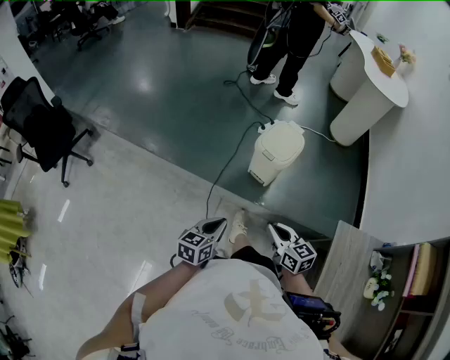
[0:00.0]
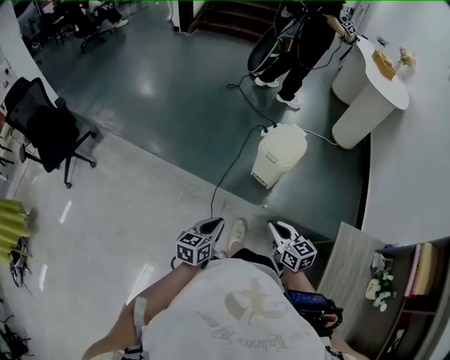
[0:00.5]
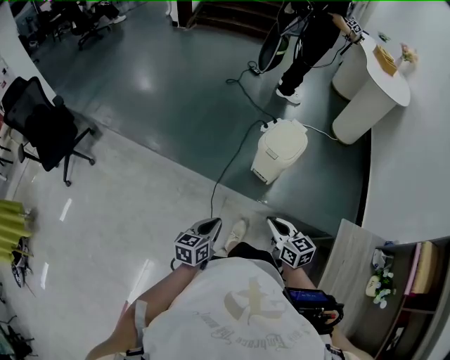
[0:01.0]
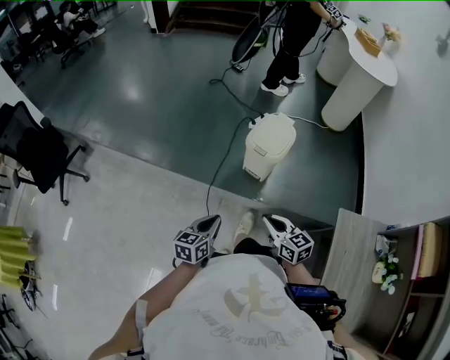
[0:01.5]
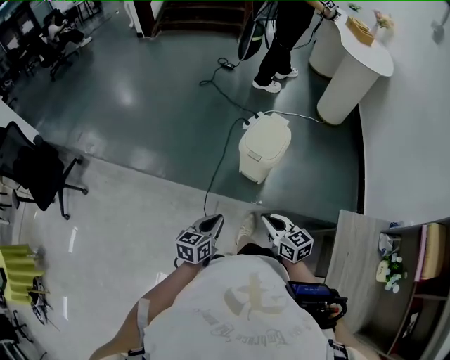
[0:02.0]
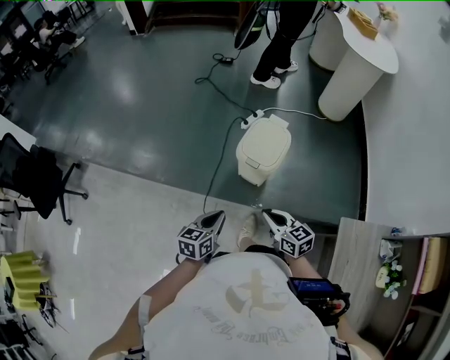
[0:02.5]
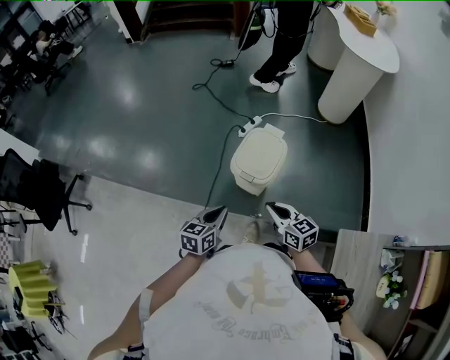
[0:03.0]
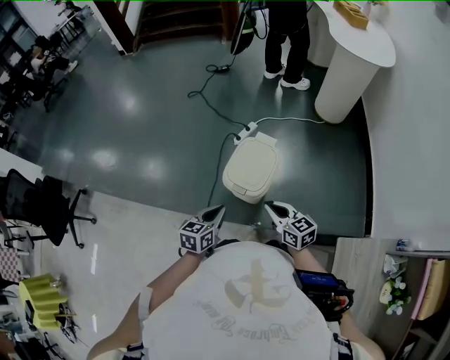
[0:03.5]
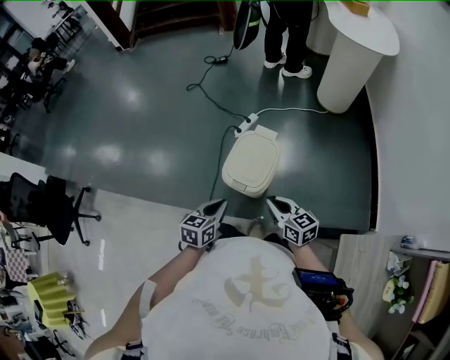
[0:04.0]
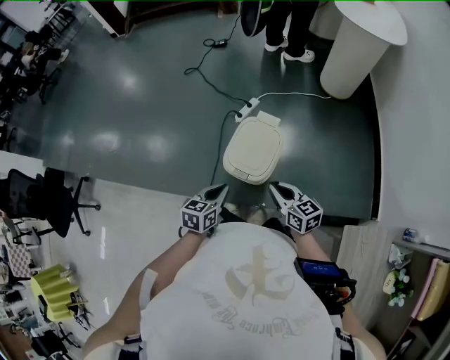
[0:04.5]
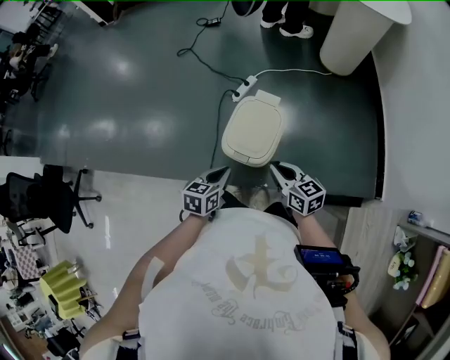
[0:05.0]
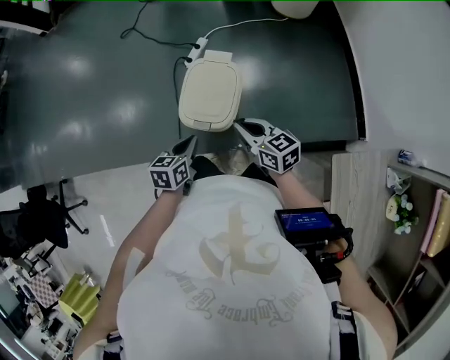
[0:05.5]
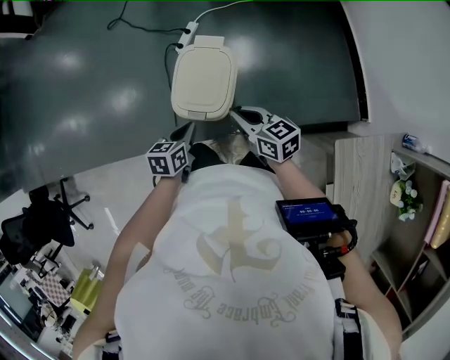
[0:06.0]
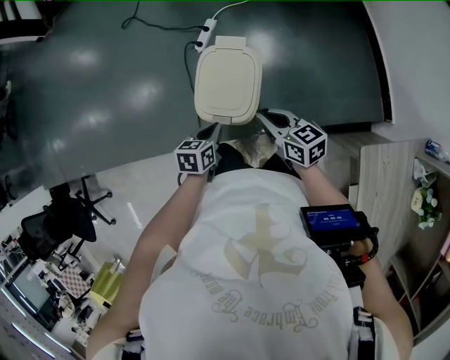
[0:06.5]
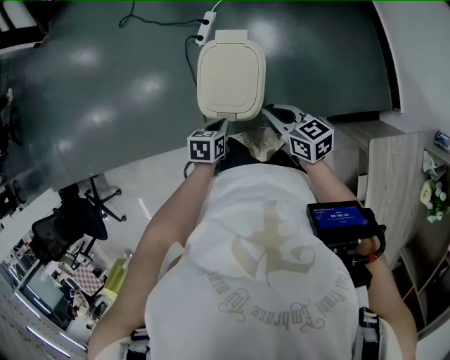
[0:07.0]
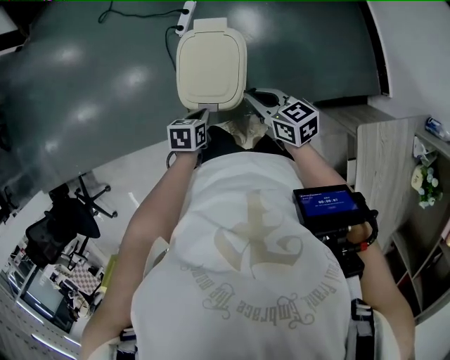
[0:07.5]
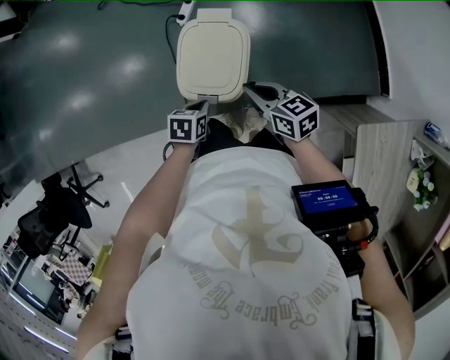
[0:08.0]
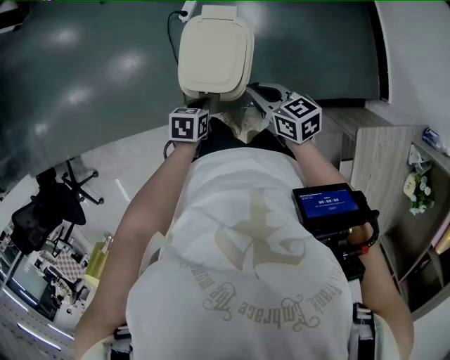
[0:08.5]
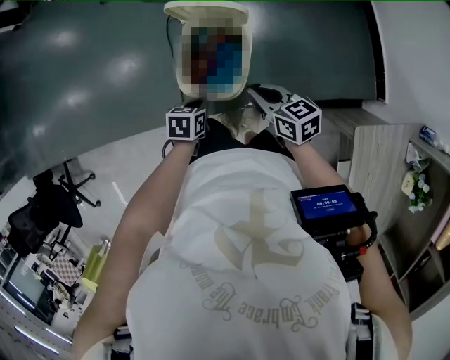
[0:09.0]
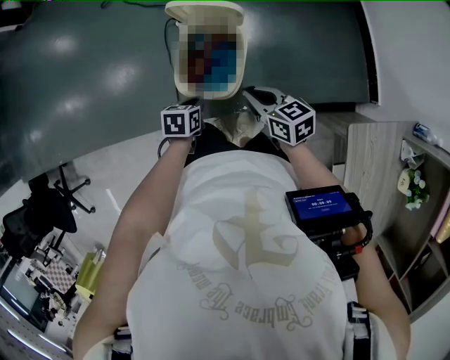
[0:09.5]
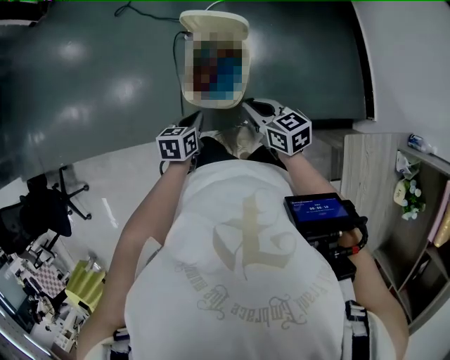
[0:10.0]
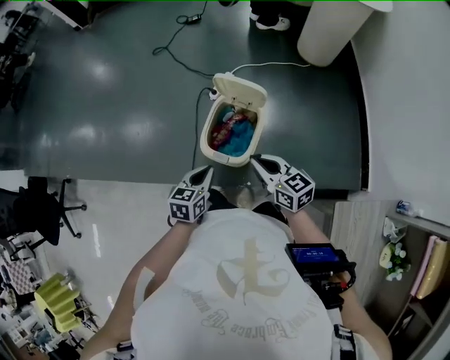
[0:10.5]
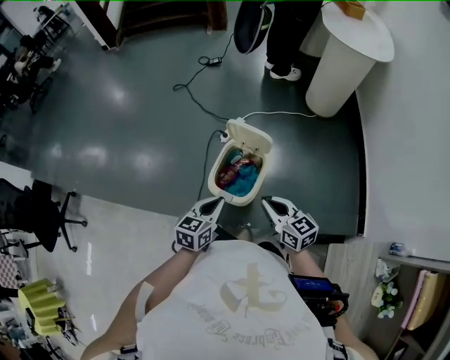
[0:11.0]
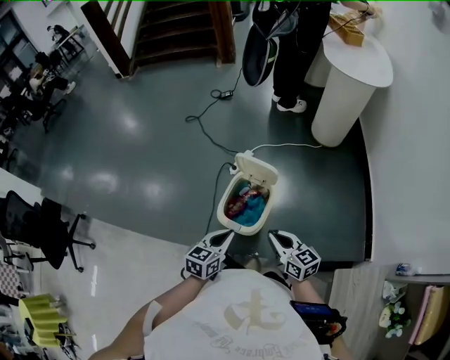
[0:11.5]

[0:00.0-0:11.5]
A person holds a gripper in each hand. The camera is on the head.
0:00.0 to 0:02.0: Both grippers move forward, roughly 5 cm.
0:02.0 to 0:04.0: Both grippers move forward and to the right, some 25 cm.
0:04.0 to 0:06.0: The right gripper is displaced forward by roughly 5 cm, while the left gripper moves downward and forward, approximately 10 cm.
0:06.0 to 0:07.5: The left gripper goes roughly 10 cm downward, and turns by roughly 20 degrees. The right gripper changes place by roughly 5 cm.
0:07.5 to 0:09.5: There are only small adjustments of the grippers.
0:09.5 to 0:11.5: The left gripper goes approximately 20 cm upward, and tilts its fingers approximately 30 degrees upward, while the right gripper heads upward, covering some 10 cm.

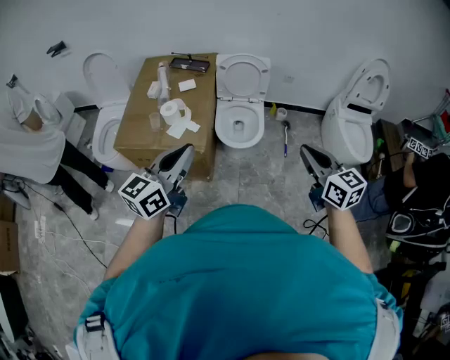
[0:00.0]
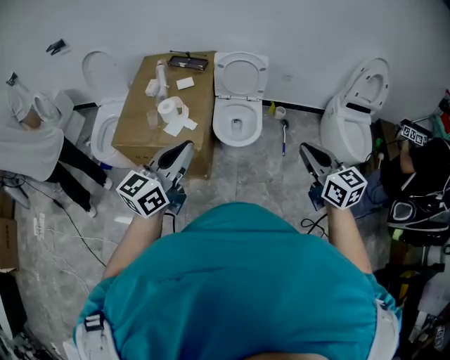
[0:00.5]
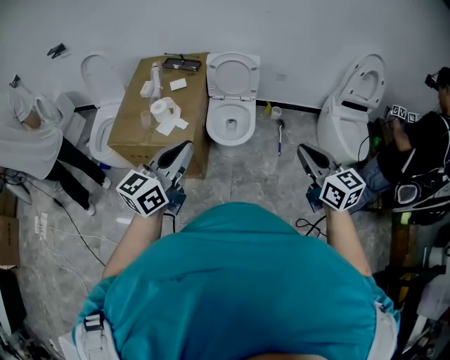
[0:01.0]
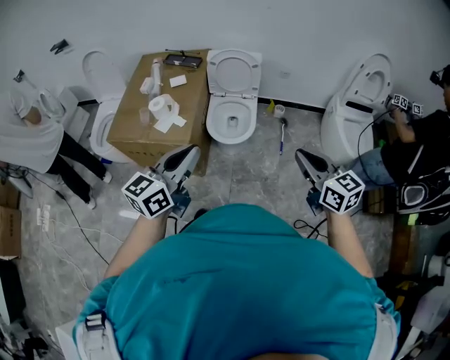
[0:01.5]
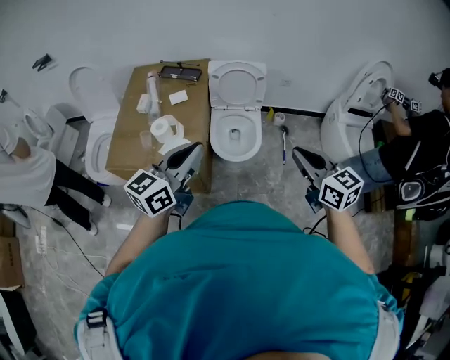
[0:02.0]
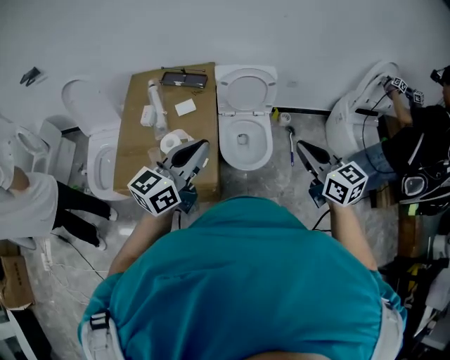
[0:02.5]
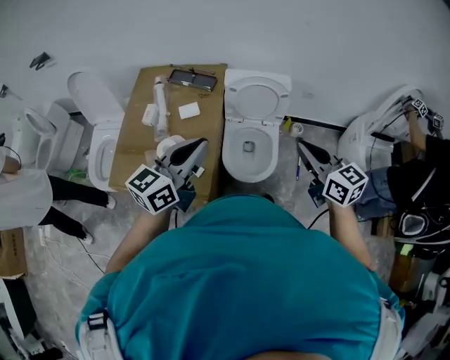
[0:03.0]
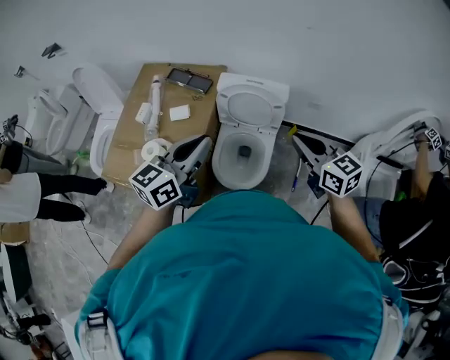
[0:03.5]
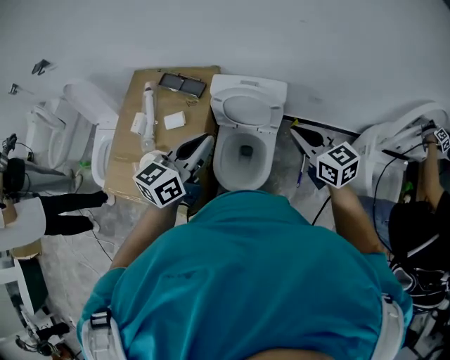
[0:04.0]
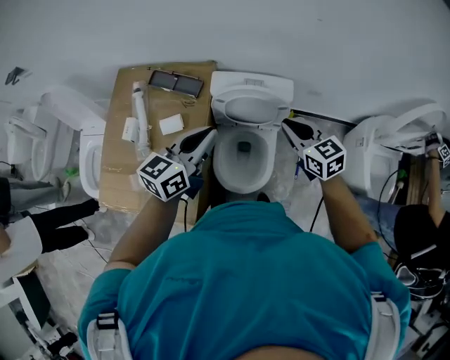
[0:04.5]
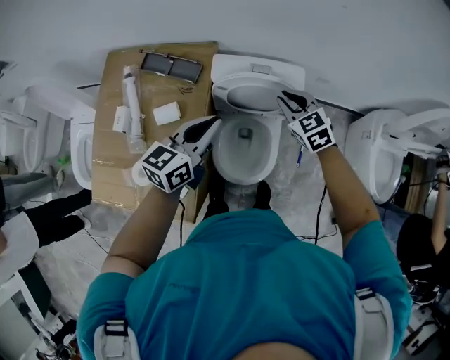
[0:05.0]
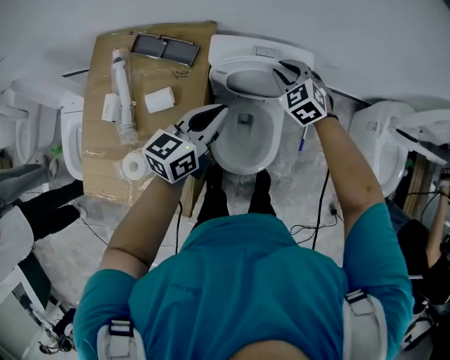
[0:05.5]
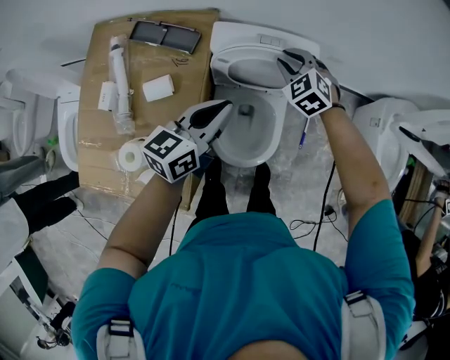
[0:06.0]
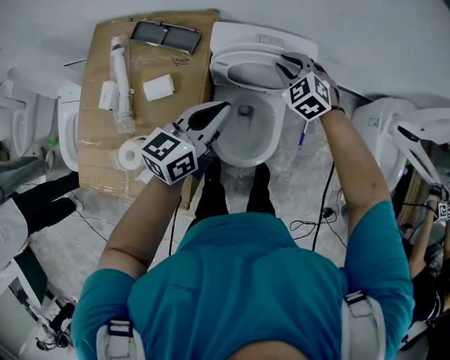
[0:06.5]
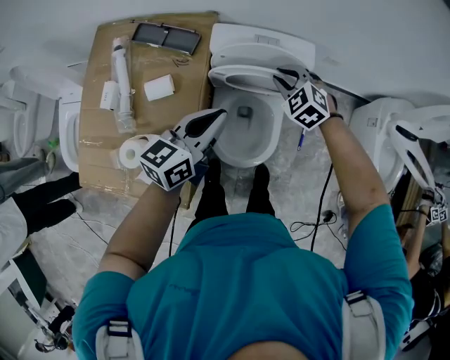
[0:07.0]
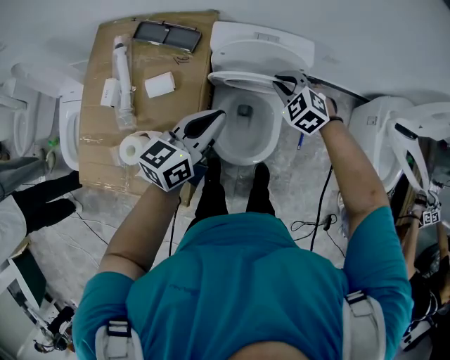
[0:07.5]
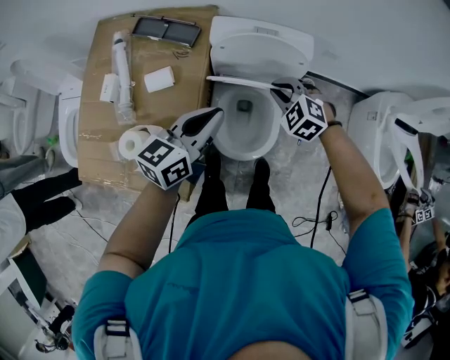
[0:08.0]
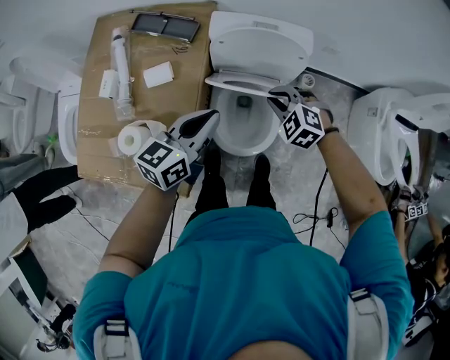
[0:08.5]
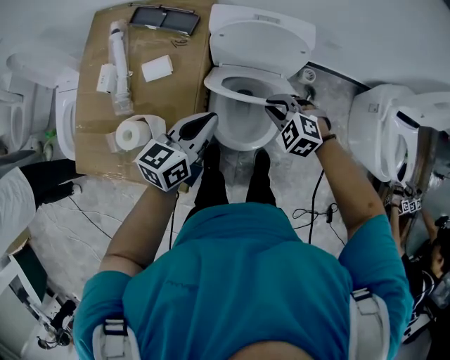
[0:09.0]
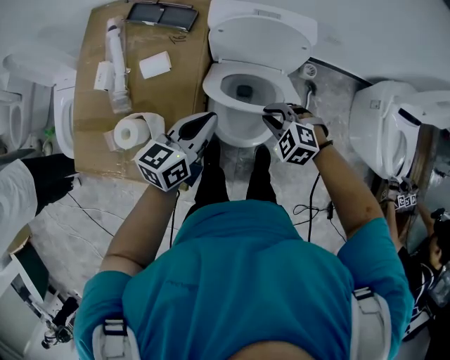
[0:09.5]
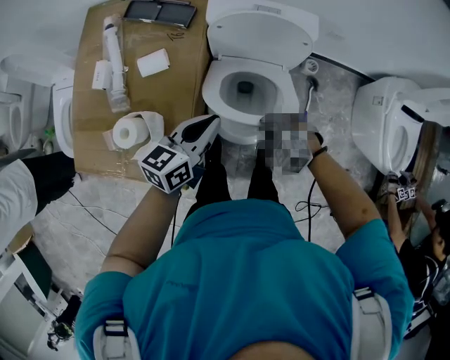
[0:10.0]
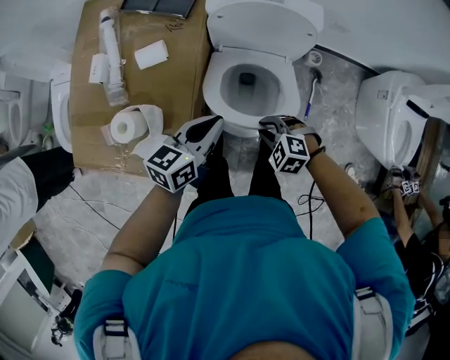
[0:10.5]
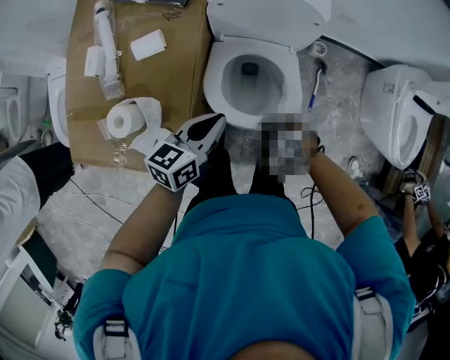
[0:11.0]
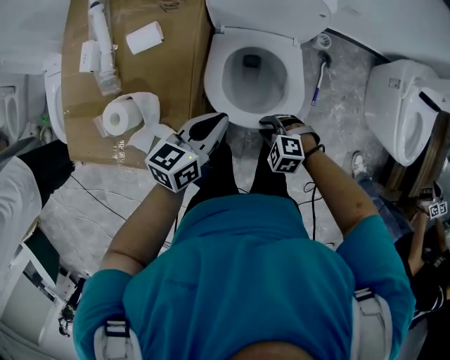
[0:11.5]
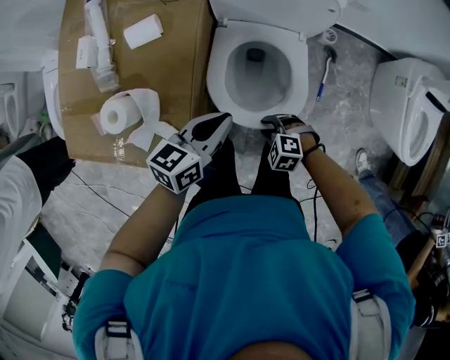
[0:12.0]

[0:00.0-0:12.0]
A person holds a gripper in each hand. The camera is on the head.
0:00.0 to 0:02.0: The two grippers go approximately 10 cm forward.
0:02.0 to 0:04.0: The two grippers travel together, forward, approximately 40 cm.
0:04.0 to 0:06.0: The right gripper heads downward, forward and to the left, covering some 35 cm, and turns by roughly 50 degrees; the left gripper goes some 25 cm downward and forward.
0:06.0 to 0:08.0: The right gripper travels backward by some 15 cm, while the left gripper goes some 5 cm backward.
0:08.0 to 0:10.0: The right gripper moves backward and downward, about 20 cm; the left gripper is displaced downward by approximately 5 cm.
0:10.0 to 0:12.0: The right gripper shifts roughly 15 cm downward, while the left gripper heads downward, covering roughly 10 cm.

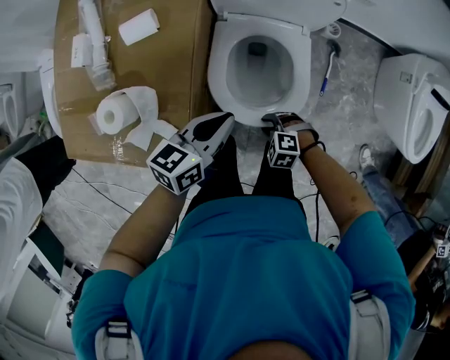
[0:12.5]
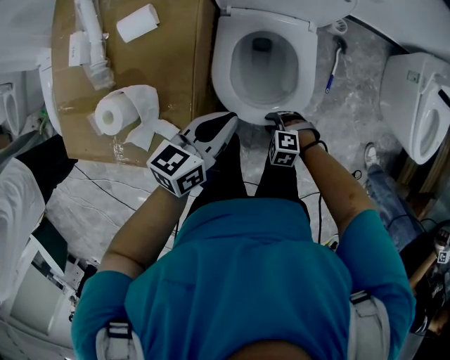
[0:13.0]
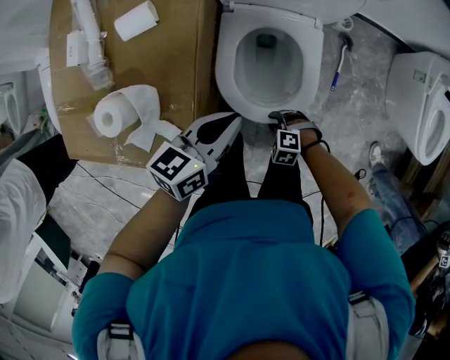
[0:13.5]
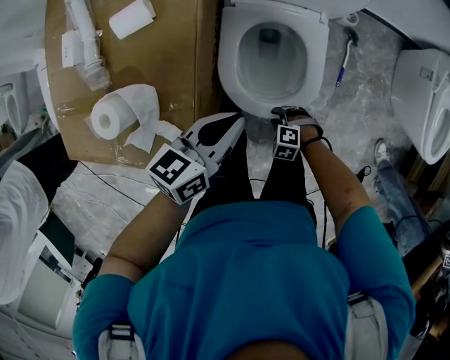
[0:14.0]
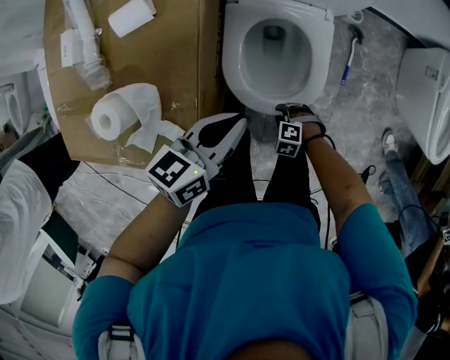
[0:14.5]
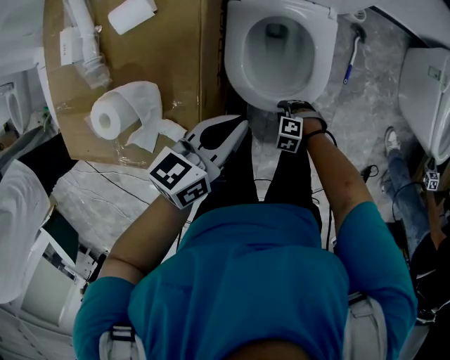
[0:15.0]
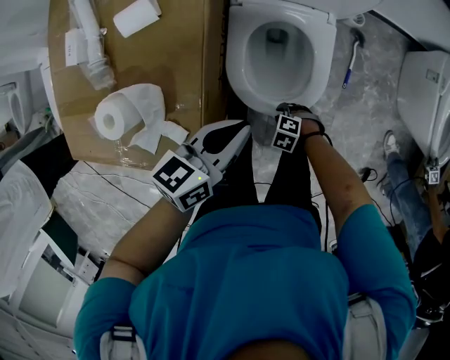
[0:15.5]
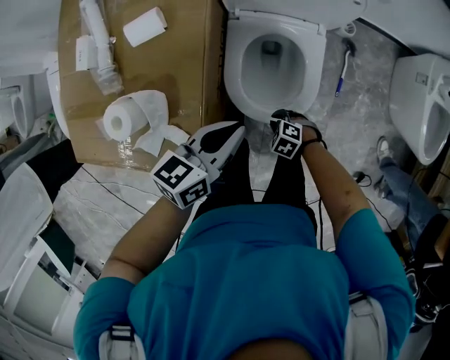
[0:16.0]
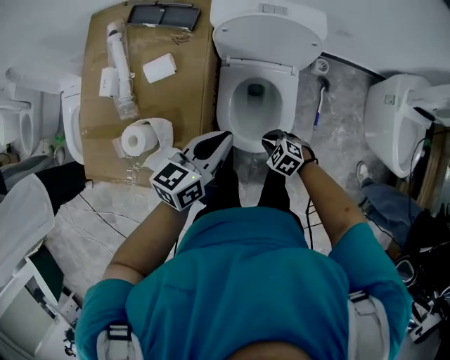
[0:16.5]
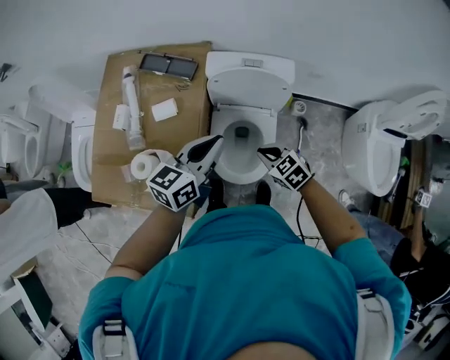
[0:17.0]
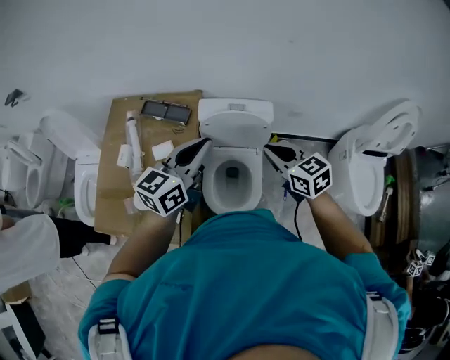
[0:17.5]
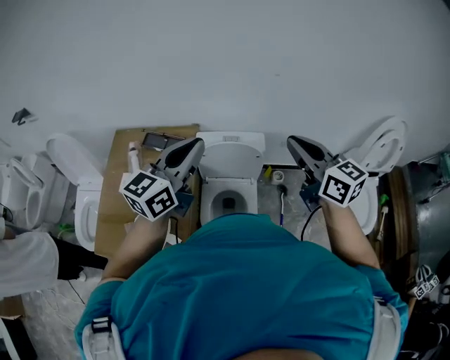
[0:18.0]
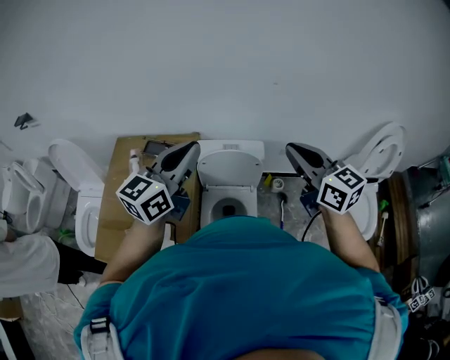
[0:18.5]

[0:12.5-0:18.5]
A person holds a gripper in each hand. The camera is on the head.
0:12.5 to 0:14.5: The right gripper goes roughly 15 cm downward.
0:14.5 to 0:16.5: The right gripper travels upward by roughly 20 cm, rotates approximately 30 degrees, and closes its fingers, while the left gripper heads upward, covering about 15 cm.
0:16.5 to 0:18.5: The right gripper travels upward by roughly 60 cm, and angles its fingers upward, by some 60 degrees, while the left gripper is displaced upward by about 40 cm, and changes its angle by about 30 degrees.
